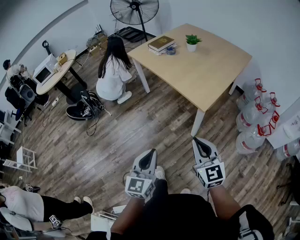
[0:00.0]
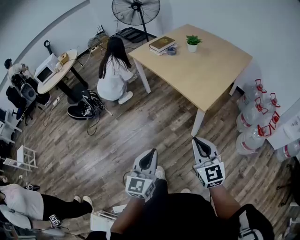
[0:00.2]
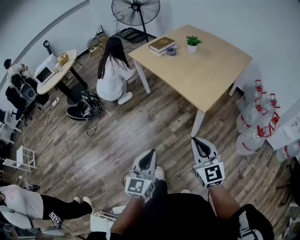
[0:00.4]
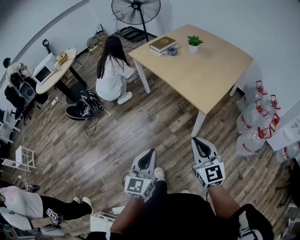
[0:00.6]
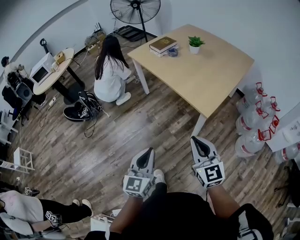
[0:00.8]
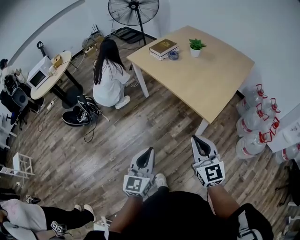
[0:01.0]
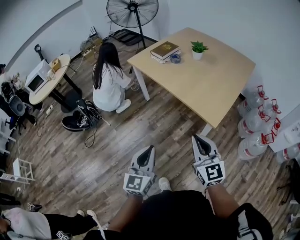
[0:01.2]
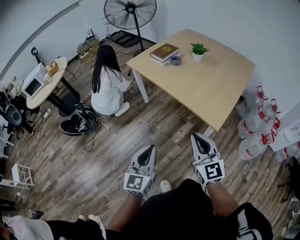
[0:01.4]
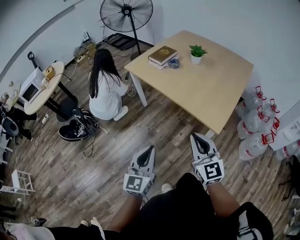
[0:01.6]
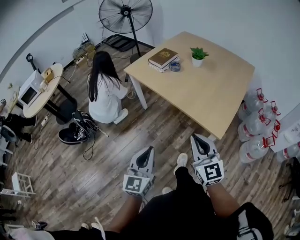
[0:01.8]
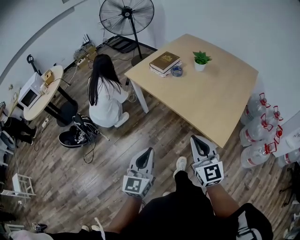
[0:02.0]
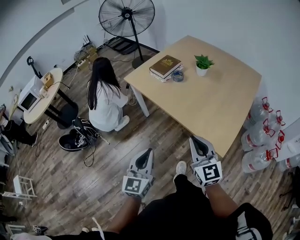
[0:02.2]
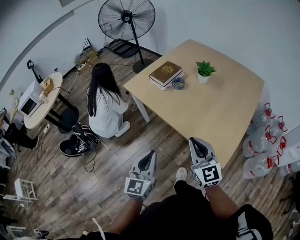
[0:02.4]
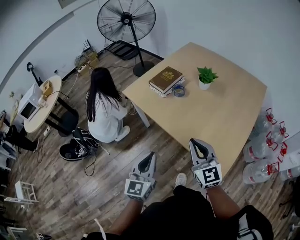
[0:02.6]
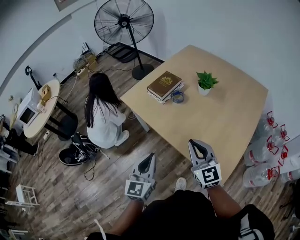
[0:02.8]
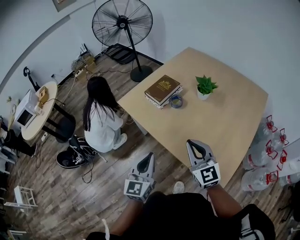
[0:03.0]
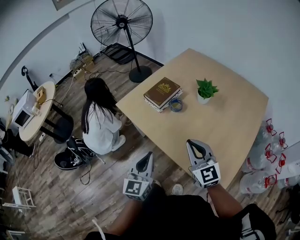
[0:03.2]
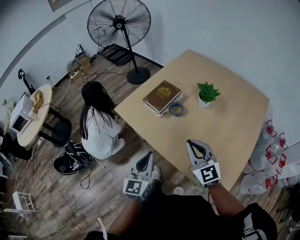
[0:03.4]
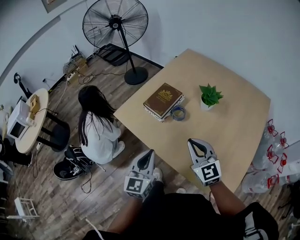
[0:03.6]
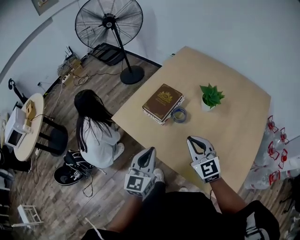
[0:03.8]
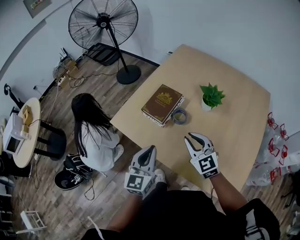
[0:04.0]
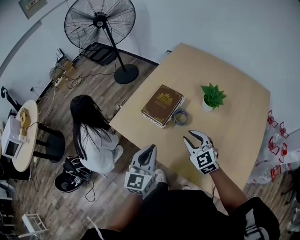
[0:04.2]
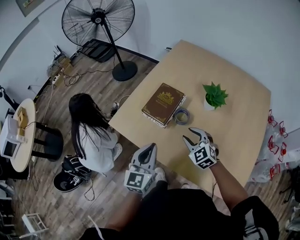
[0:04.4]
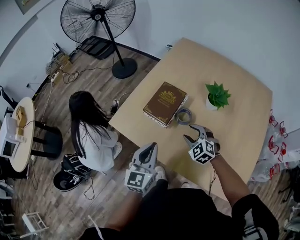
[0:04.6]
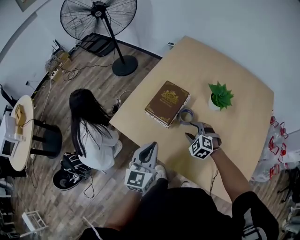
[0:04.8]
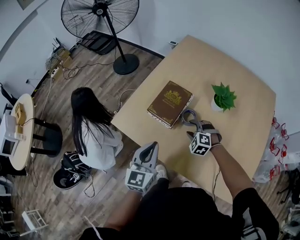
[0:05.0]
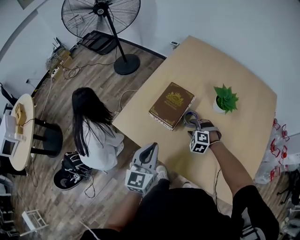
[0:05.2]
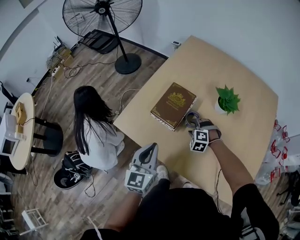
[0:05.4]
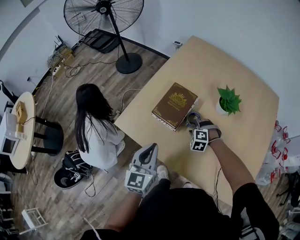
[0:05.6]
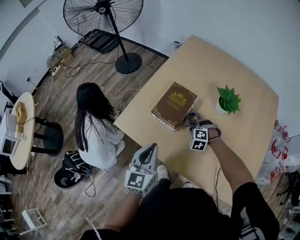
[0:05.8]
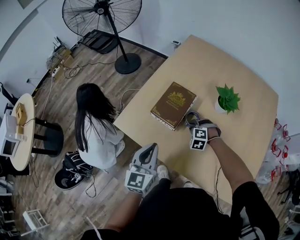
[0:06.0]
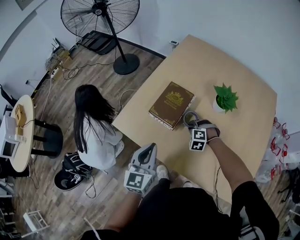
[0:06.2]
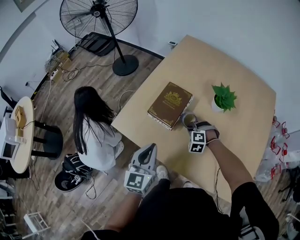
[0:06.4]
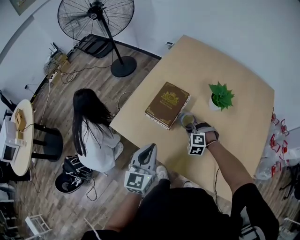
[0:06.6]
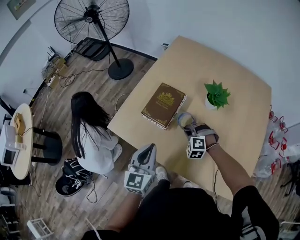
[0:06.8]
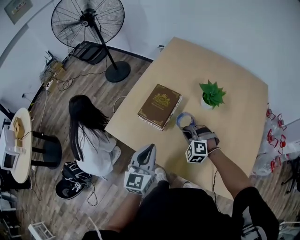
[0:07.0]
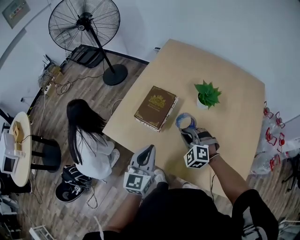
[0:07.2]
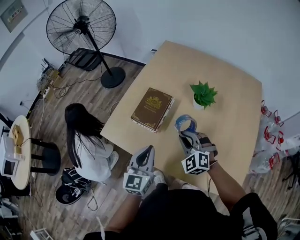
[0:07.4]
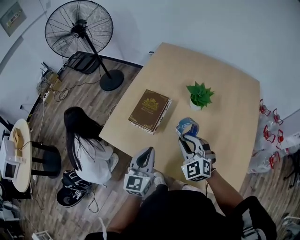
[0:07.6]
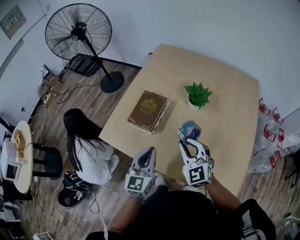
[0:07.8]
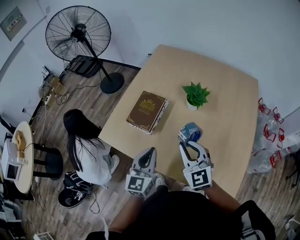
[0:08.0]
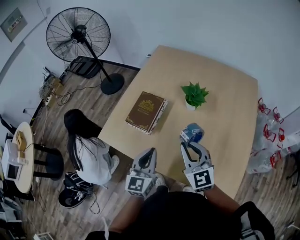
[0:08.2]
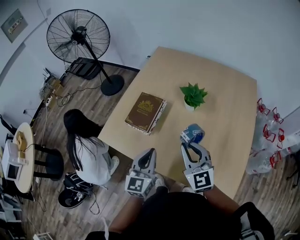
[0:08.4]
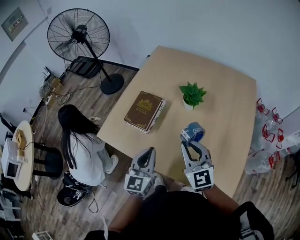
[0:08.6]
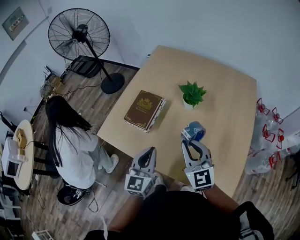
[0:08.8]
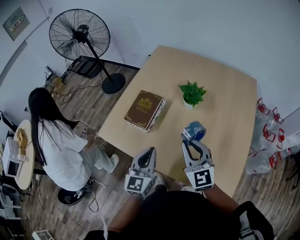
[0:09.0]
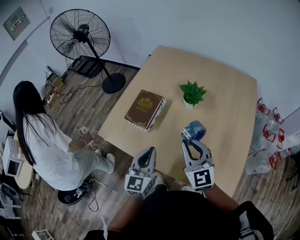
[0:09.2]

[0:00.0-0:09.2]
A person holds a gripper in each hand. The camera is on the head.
0:00.0 to 0:01.6: Both grippers travel together forward and to the left, approximately 25 cm.
0:01.6 to 0:03.0: The two grippers go approximately 35 cm forward.
0:03.0 to 0:04.6: The left gripper shifts about 25 cm forward; the right gripper is displaced forward and downward by approximately 35 cm, tips its fingers downward by some 40 degrees, and opens up.
0:04.6 to 0:06.2: The right gripper heads downward and forward, covering roughly 10 cm, swivels some 30 degrees, and closes.
0:06.2 to 0:07.6: The right gripper goes about 20 cm upward and backward, and tips its fingers upward by about 40 degrees. The left gripper moves to the right, approximately 10 cm.
0:07.6 to 0:09.2: The left gripper heads to the right, covering approximately 5 cm. Meanwhile the right gripper shifts about 10 cm upward, to the right and backward, and swivels approximately 30 degrees.

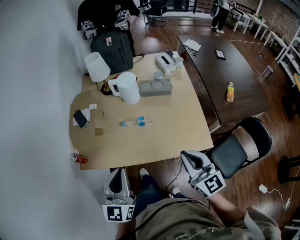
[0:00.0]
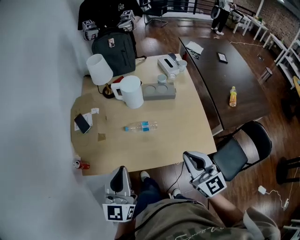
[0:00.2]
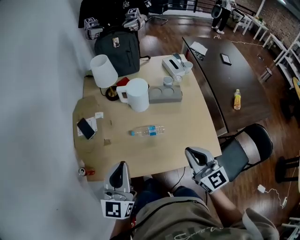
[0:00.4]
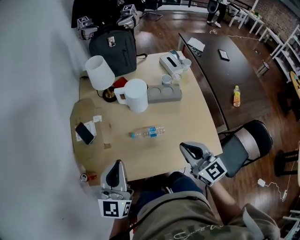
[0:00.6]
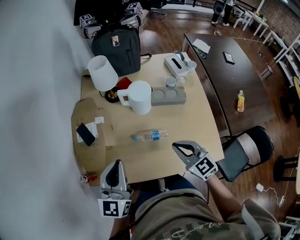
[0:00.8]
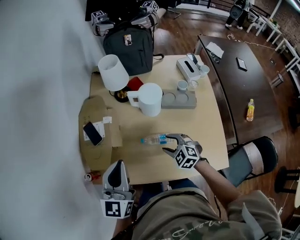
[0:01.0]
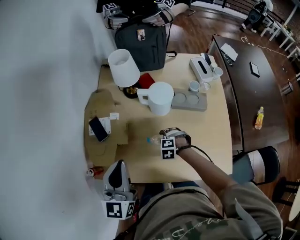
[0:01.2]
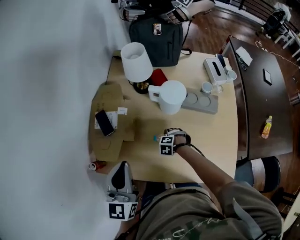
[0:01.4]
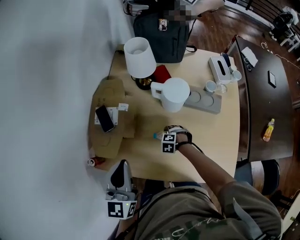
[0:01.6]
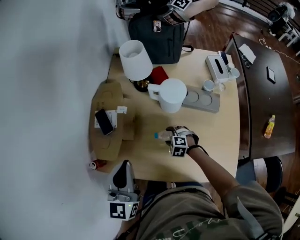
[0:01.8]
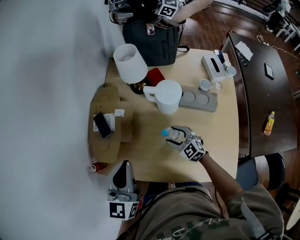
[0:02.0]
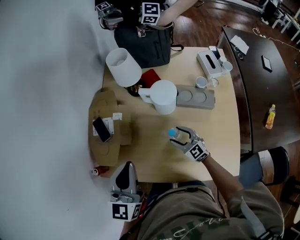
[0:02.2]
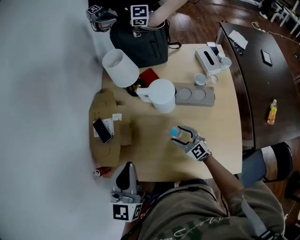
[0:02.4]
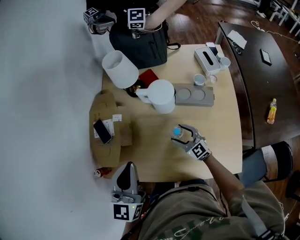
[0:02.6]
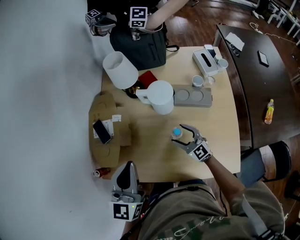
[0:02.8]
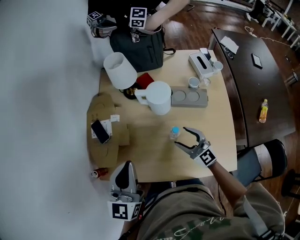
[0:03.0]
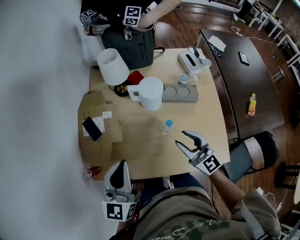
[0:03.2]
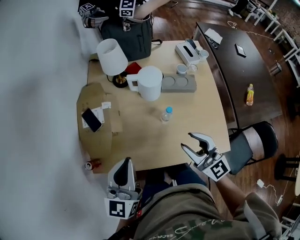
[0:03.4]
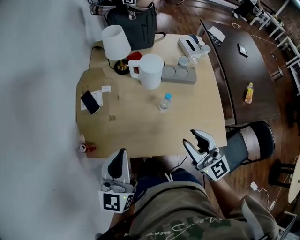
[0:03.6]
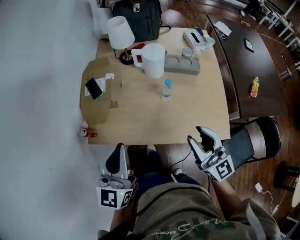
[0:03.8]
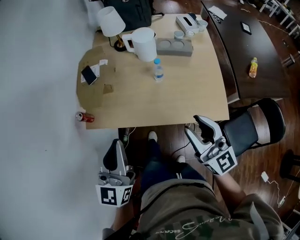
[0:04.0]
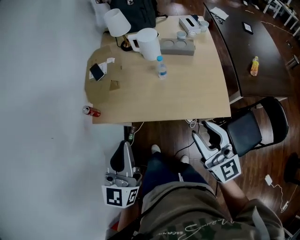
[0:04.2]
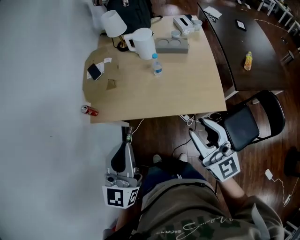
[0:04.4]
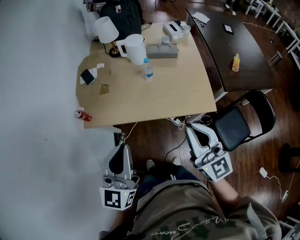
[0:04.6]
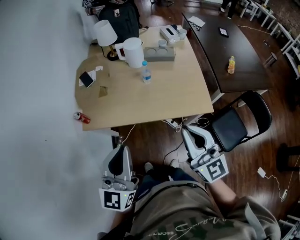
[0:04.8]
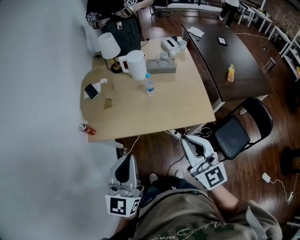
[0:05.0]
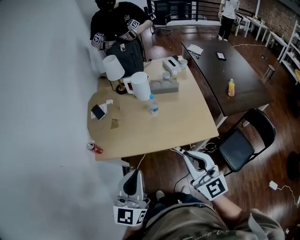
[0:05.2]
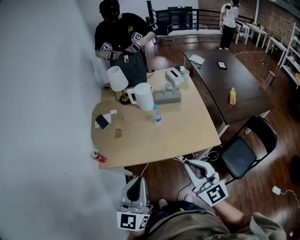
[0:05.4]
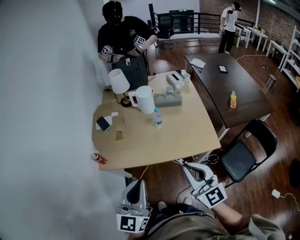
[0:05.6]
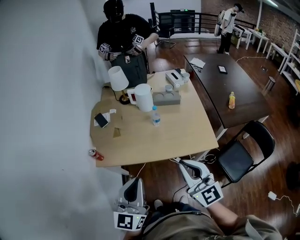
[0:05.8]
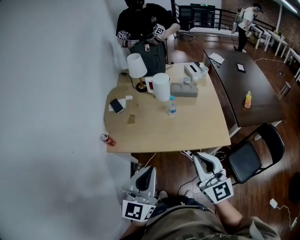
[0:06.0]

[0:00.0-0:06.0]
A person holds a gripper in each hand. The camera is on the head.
0:00.0 to 0:01.6: The right gripper shifts some 40 cm downward, points its fingers some 70 degrees further downward, and opens, while the left gripper moves approximately 25 cm.
0:01.6 to 0:03.0: The right gripper moves upward, some 25 cm, and tilts its fingers roughly 70 degrees upward. The left gripper changes place by roughly 5 cm.
0:03.0 to 0:04.4: The left gripper shifts roughly 35 cm backward. The right gripper shifts some 40 cm backward and upward, turns by approximately 20 degrees, and closes.
0:04.4 to 0:06.0: The right gripper is displaced to the left by about 5 cm, and closes.

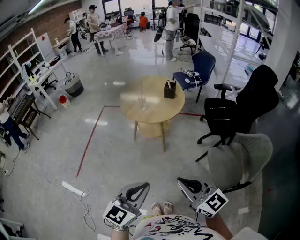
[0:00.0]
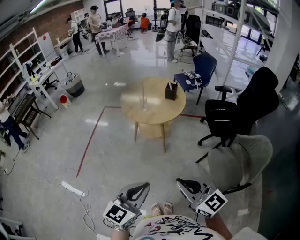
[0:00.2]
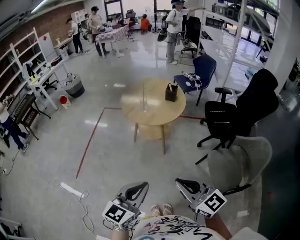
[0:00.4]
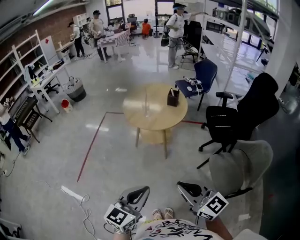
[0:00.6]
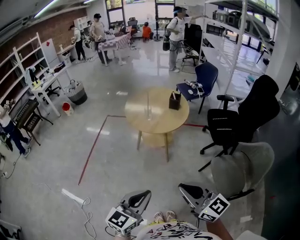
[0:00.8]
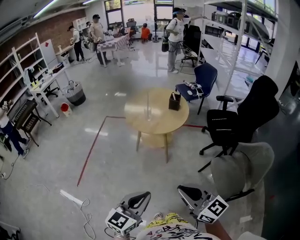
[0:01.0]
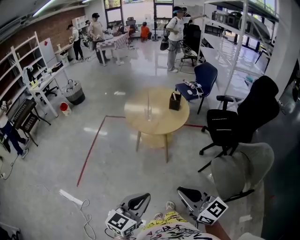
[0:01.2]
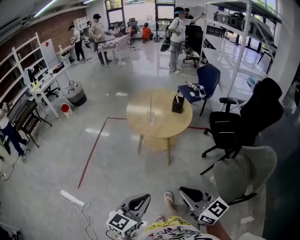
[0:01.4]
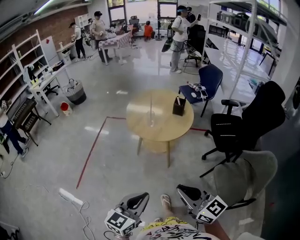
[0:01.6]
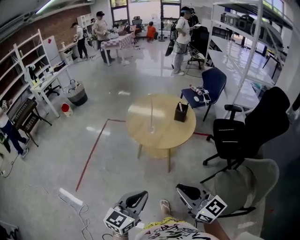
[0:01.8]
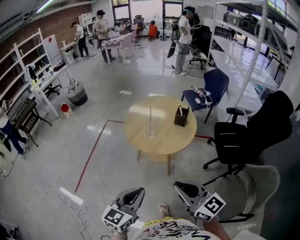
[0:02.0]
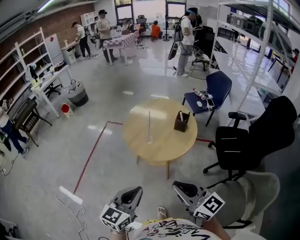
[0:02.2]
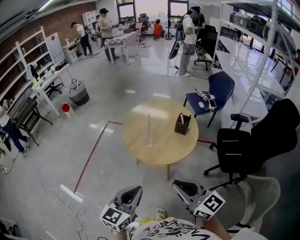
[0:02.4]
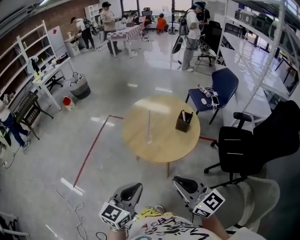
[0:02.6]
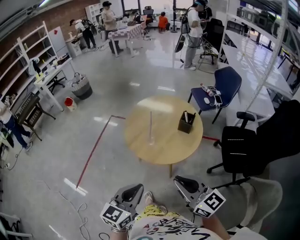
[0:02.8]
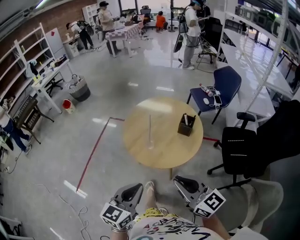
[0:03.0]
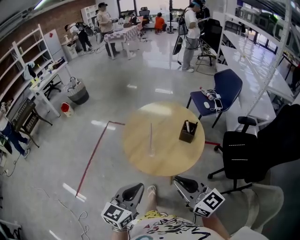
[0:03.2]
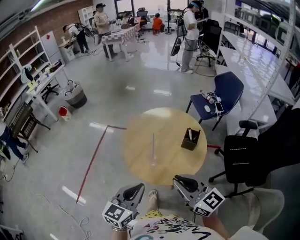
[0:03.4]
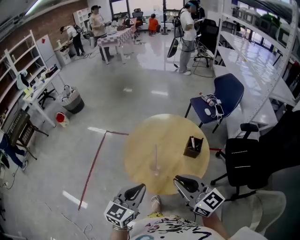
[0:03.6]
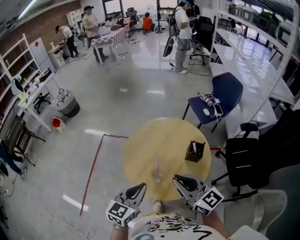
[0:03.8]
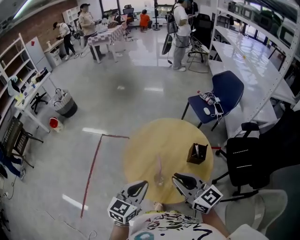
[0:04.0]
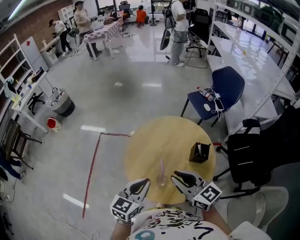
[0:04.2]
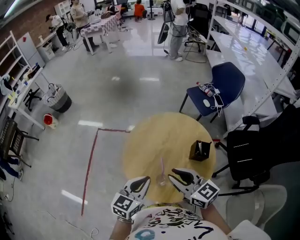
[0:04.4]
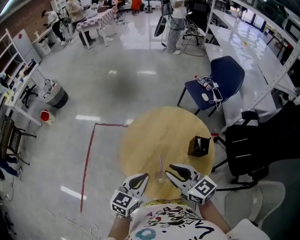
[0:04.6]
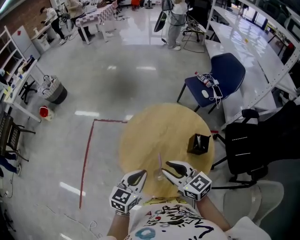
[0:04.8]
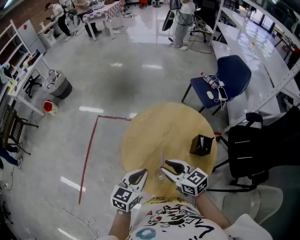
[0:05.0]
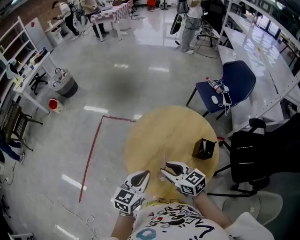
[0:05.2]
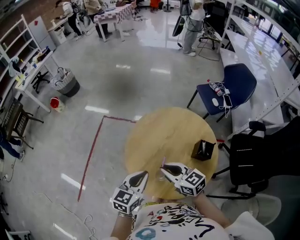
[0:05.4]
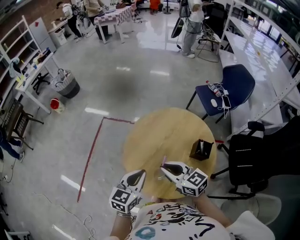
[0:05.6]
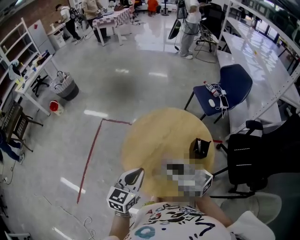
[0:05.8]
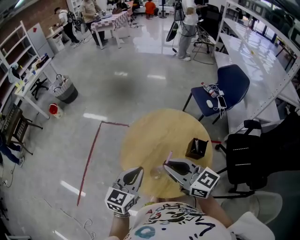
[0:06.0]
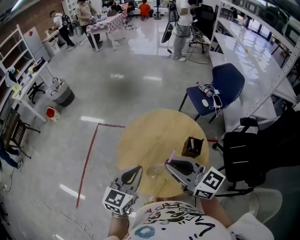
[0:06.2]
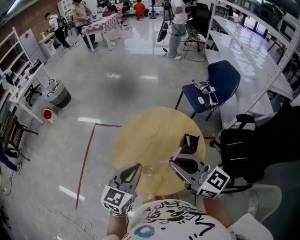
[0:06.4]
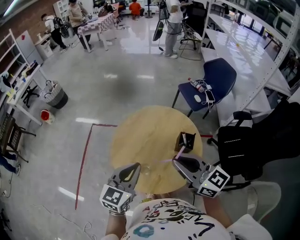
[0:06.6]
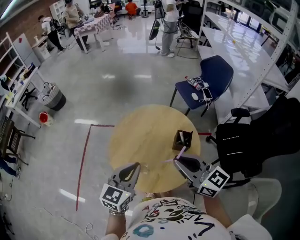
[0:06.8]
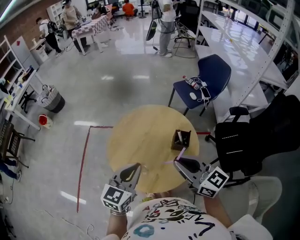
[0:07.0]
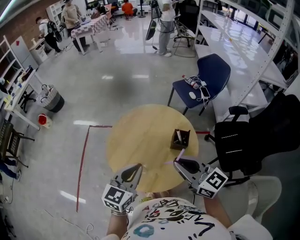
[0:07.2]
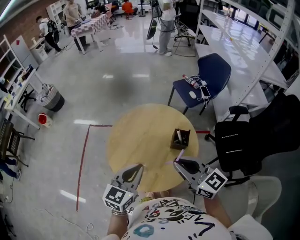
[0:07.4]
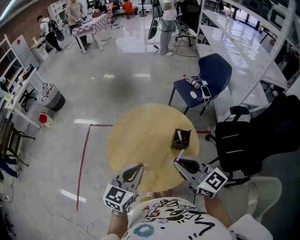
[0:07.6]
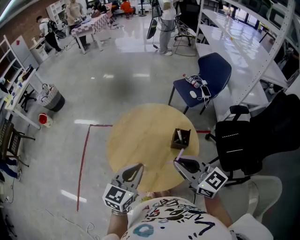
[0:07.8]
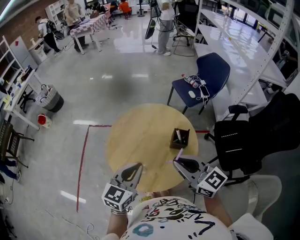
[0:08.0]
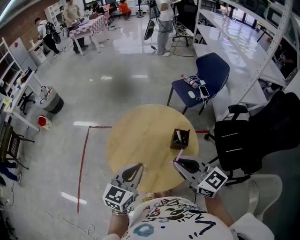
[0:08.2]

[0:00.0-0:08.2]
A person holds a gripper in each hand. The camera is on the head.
0:00.0 to 0:01.6: Both grippers move forward and to the left, roughly 10 cm.
0:01.6 to 0:03.2: Both grippers move forward, approximately 35 cm.
0:03.2 to 0:05.0: The right gripper heads forward and downward, covering about 35 cm, swivels approximately 20 degrees, and opens up. Meanwhile the left gripper moves forward, approximately 30 cm.
0:05.0 to 0:06.6: The right gripper moves upward and to the right, some 20 cm, and rotates about 20 degrees. Meanwhile the left gripper is displaced upward by some 10 cm.
0:06.6 to 0:08.2: The right gripper ends up some 5 cm from where it was.
